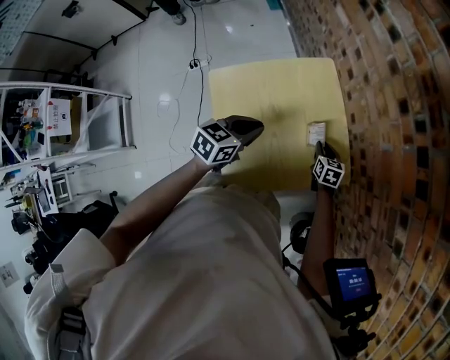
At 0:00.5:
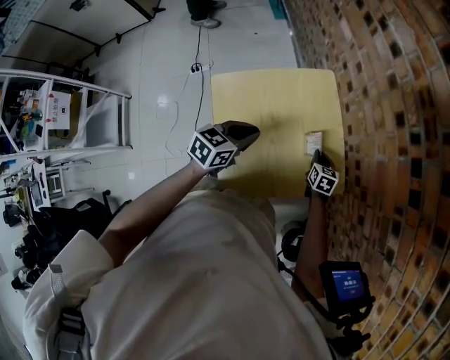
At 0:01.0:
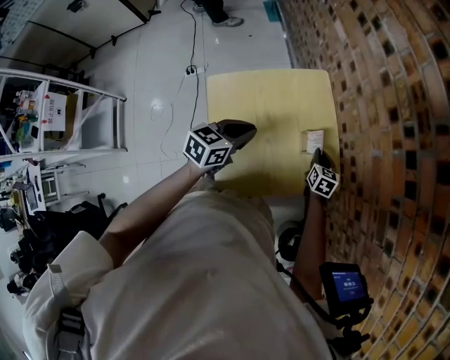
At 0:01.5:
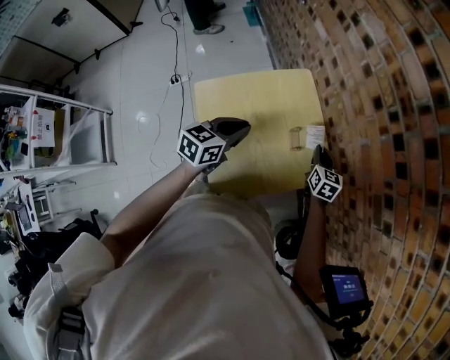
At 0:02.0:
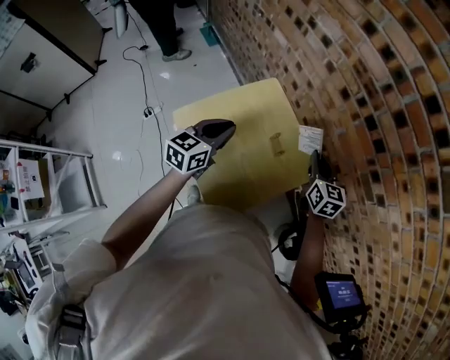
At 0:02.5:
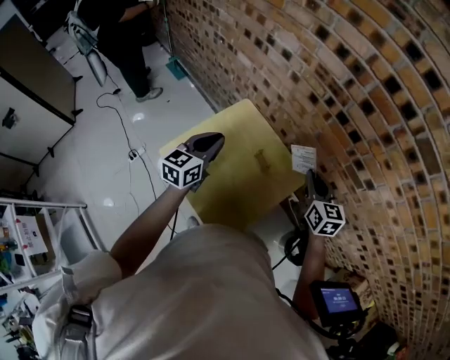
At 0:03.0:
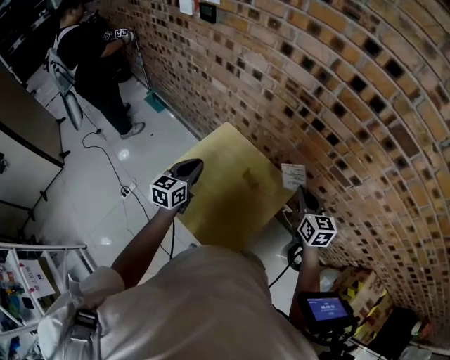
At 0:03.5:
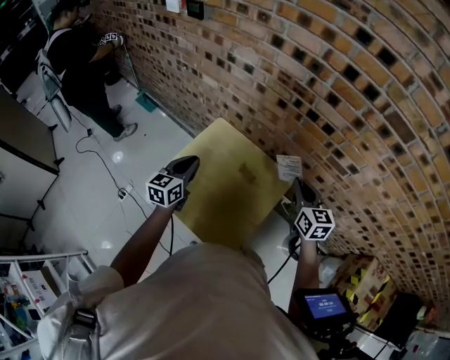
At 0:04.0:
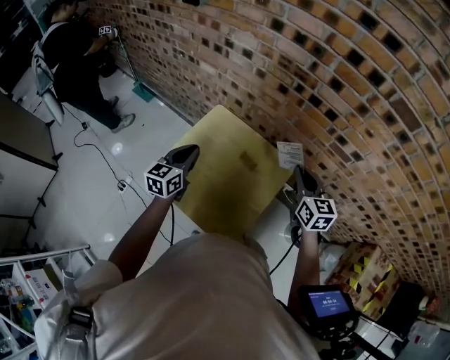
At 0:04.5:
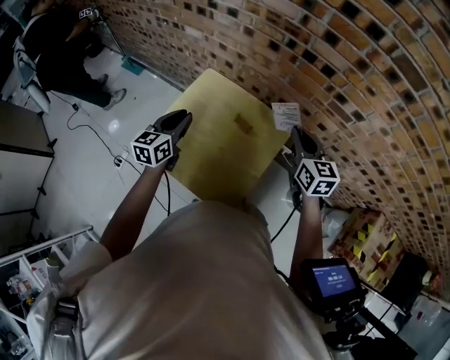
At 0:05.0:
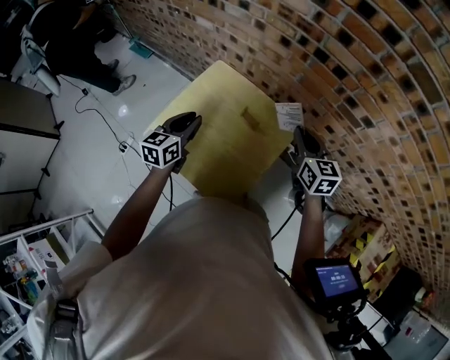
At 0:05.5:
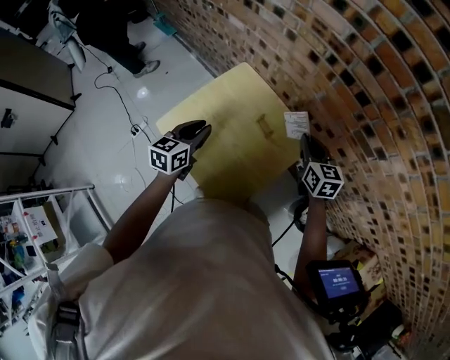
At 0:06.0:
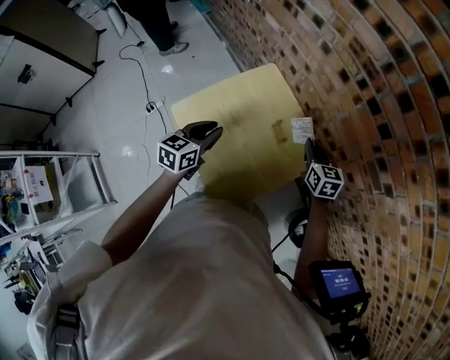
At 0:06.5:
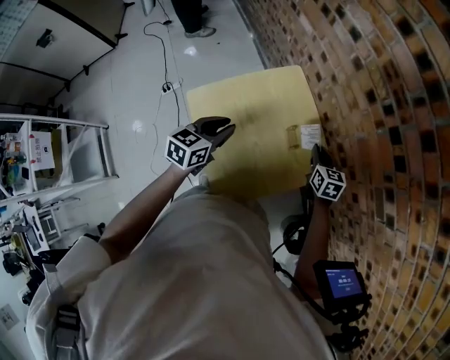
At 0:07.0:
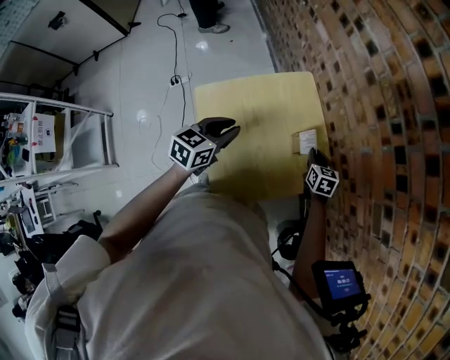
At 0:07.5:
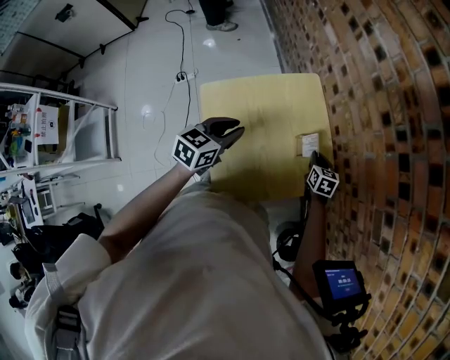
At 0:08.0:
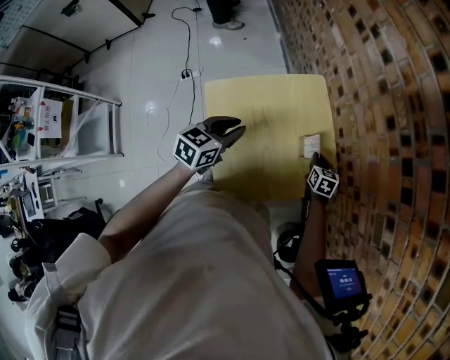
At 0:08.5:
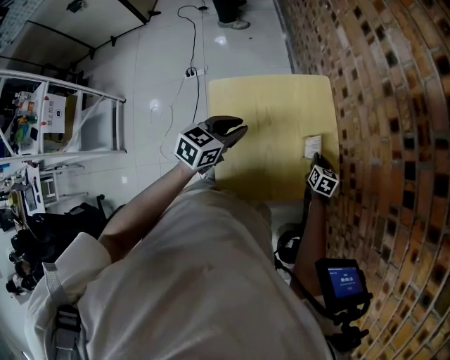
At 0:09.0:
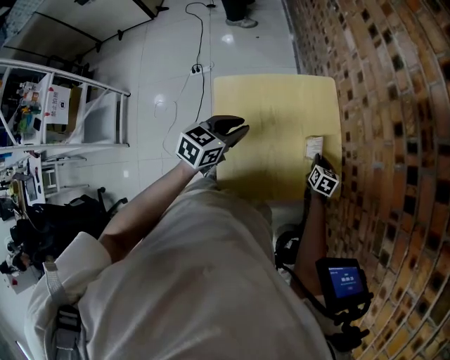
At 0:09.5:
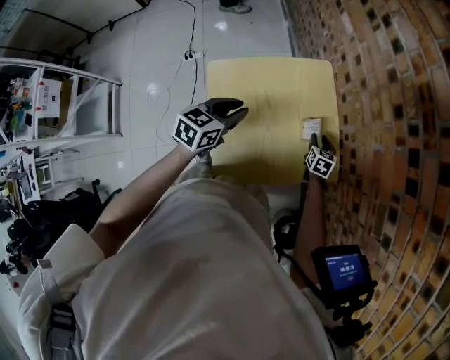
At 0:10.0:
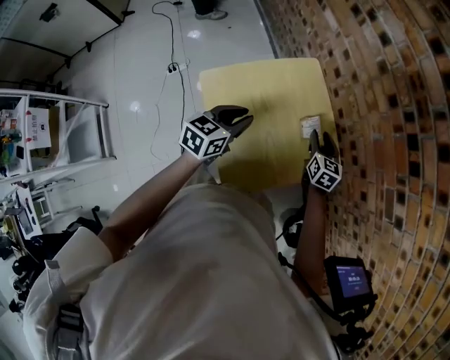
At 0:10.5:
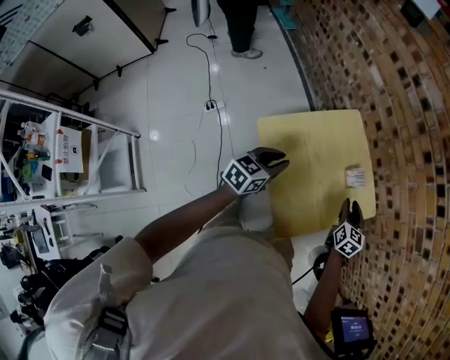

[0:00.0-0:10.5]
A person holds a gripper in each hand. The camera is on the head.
0:00.0 to 0:02.0: The right gripper travels upward by about 30 cm, and rotates roughly 30 degrees; the left gripper travels upward by approximately 10 cm.
0:02.0 to 0:04.0: The right gripper is displaced backward and upward by approximately 10 cm. The left gripper moves roughly 5 cm.
0:04.0 to 0:06.5: The right gripper shifts roughly 25 cm downward and forward, and changes its angle by roughly 30 degrees. The left gripper goes some 10 cm downward and backward, and changes its angle by approximately 20 degrees.
0:06.5 to 0:08.5: The right gripper is displaced downward by approximately 15 cm.
0:08.5 to 0:10.5: The right gripper moves upward, backward and to the left, approximately 20 cm, changes its angle by some 20 degrees, and opens its fingers, while the left gripper travels to the left by approximately 10 cm.

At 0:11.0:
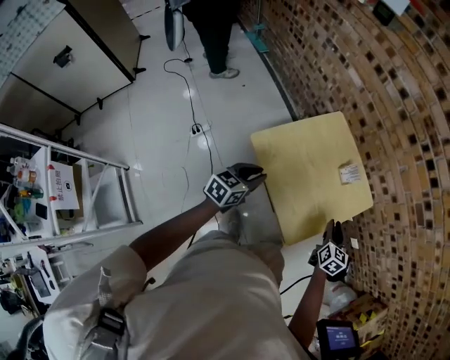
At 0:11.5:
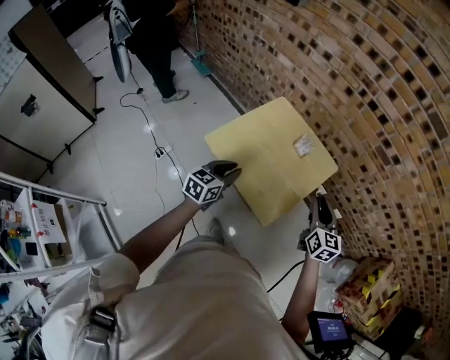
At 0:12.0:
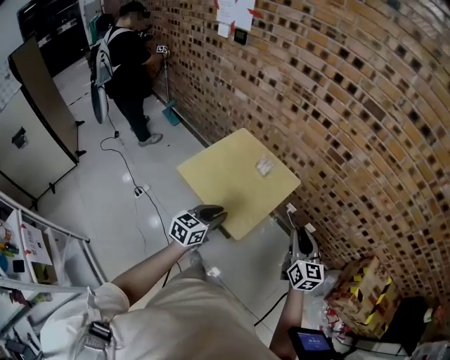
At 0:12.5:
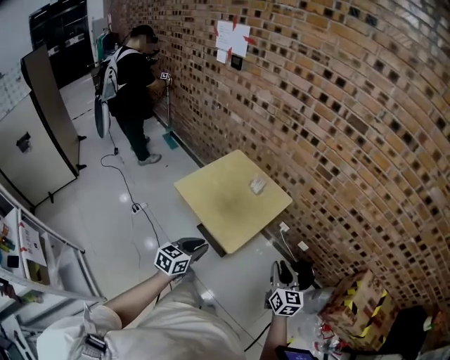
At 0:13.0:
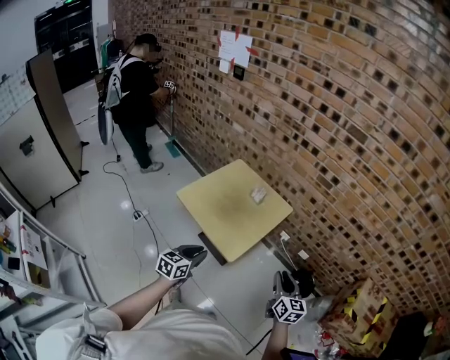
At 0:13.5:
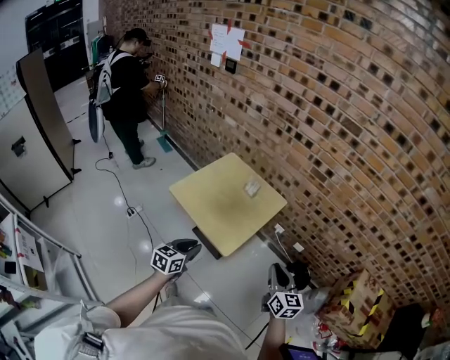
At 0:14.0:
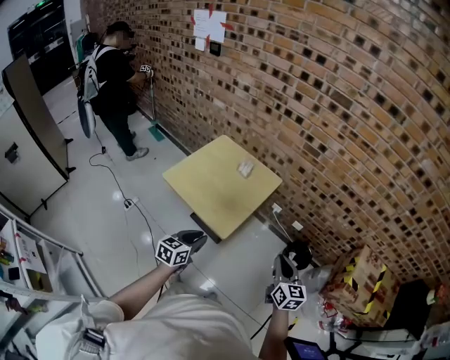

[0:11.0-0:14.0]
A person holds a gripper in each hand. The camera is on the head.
0:11.0 to 0:12.5: The right gripper travels backward, to the right and upward by about 35 cm, while the left gripper goes some 30 cm to the right and backward.
0:12.5 to 0:14.0: The right gripper moves roughly 5 cm, and closes up.

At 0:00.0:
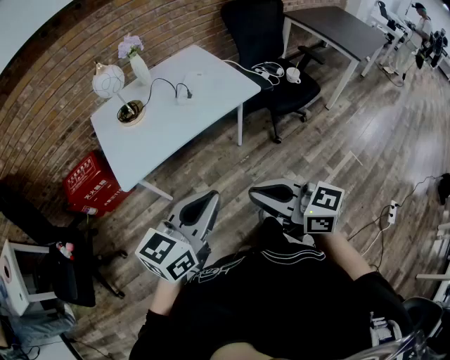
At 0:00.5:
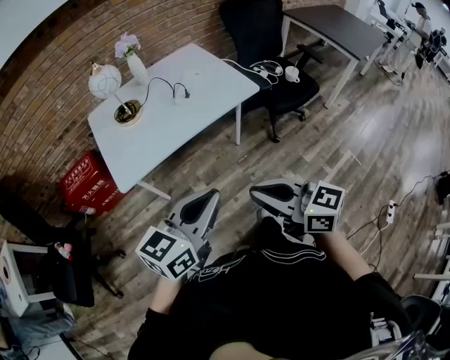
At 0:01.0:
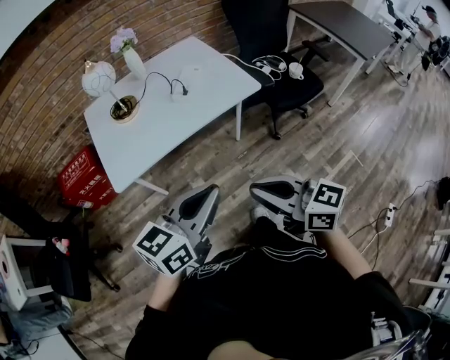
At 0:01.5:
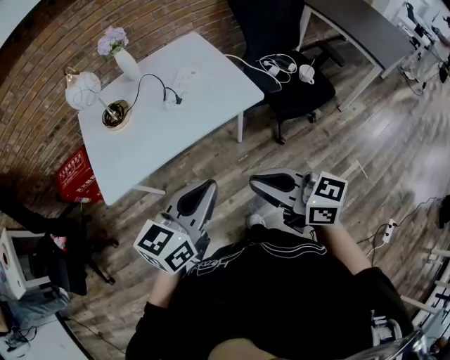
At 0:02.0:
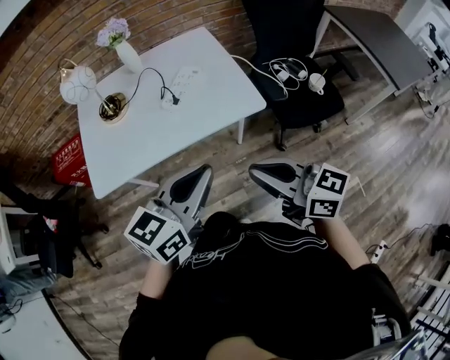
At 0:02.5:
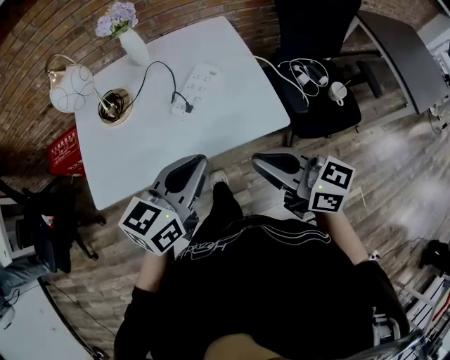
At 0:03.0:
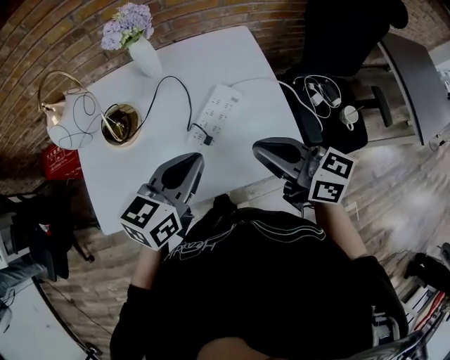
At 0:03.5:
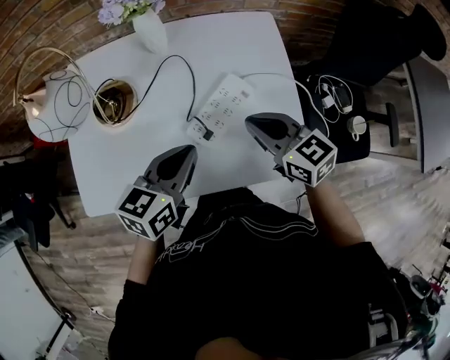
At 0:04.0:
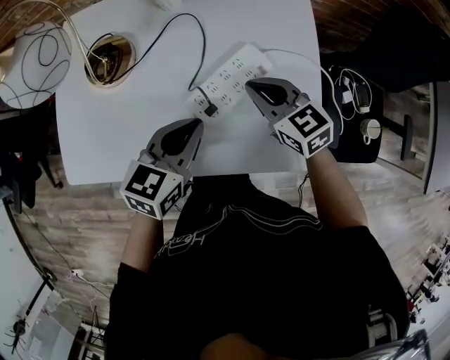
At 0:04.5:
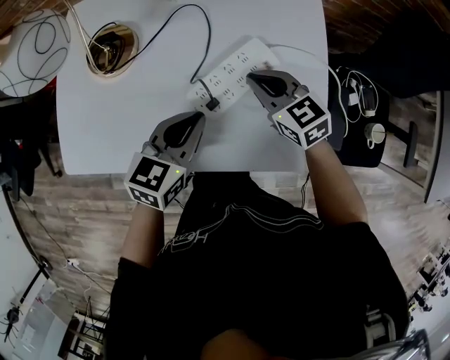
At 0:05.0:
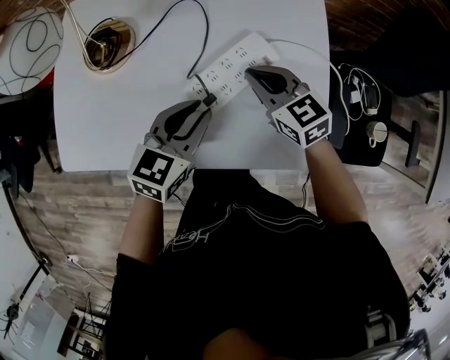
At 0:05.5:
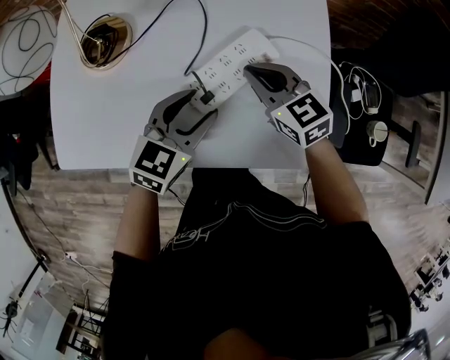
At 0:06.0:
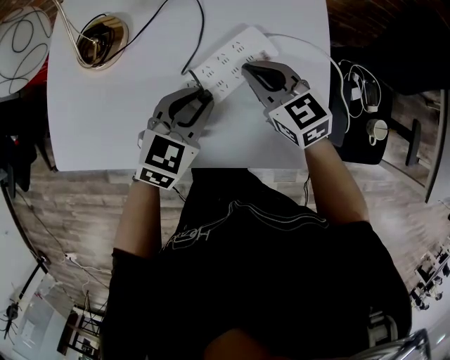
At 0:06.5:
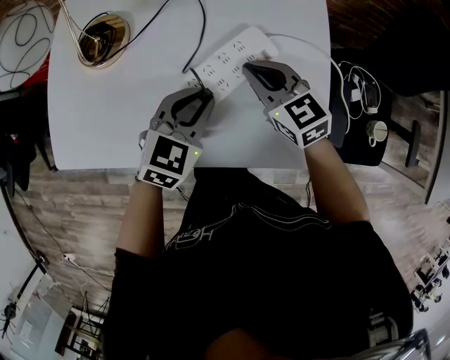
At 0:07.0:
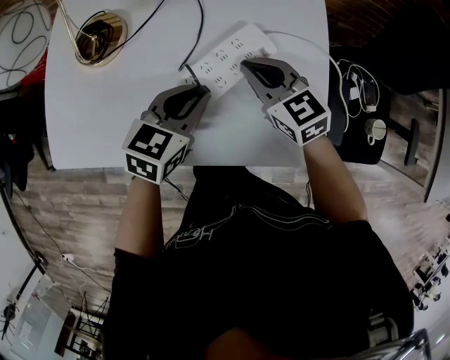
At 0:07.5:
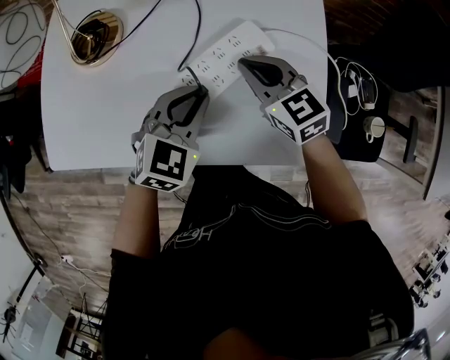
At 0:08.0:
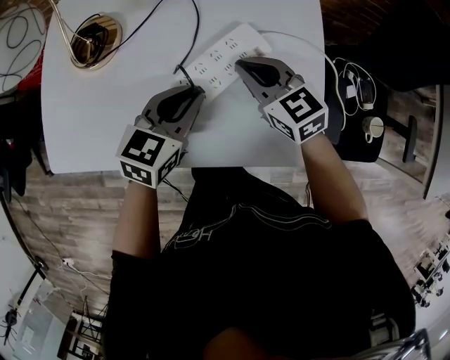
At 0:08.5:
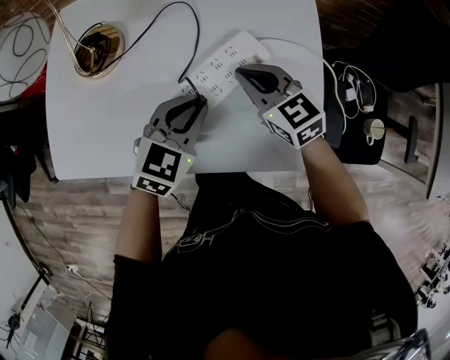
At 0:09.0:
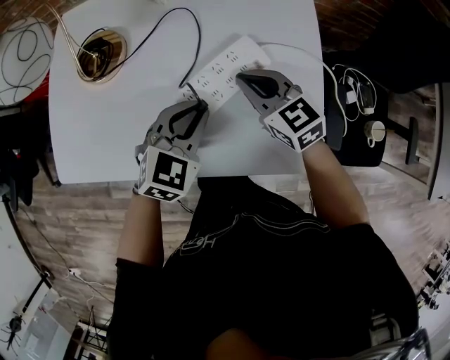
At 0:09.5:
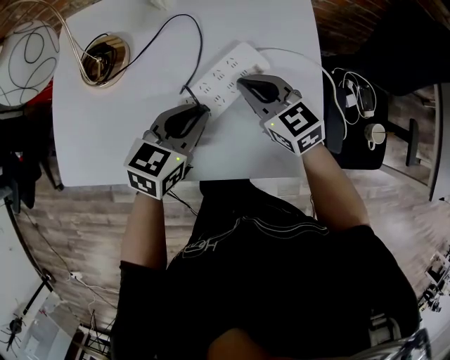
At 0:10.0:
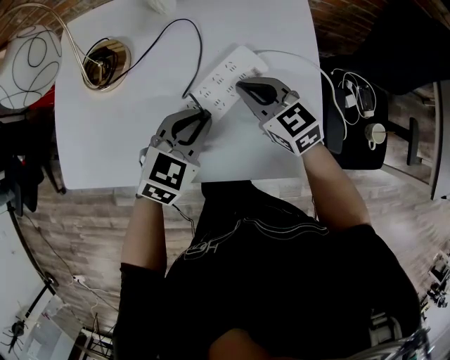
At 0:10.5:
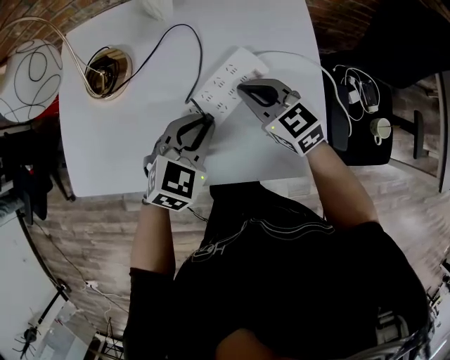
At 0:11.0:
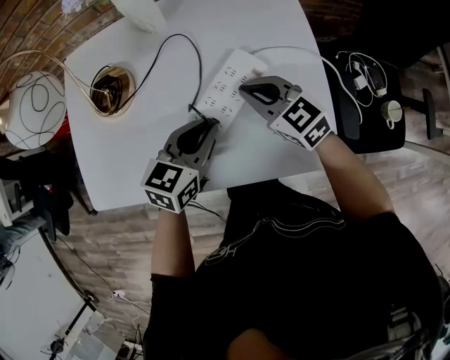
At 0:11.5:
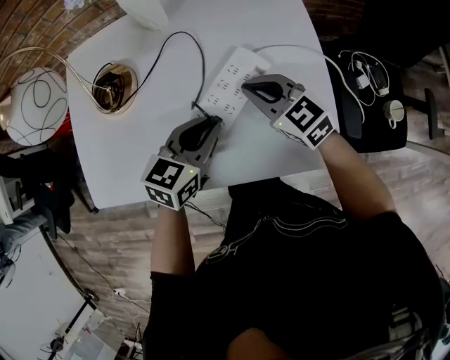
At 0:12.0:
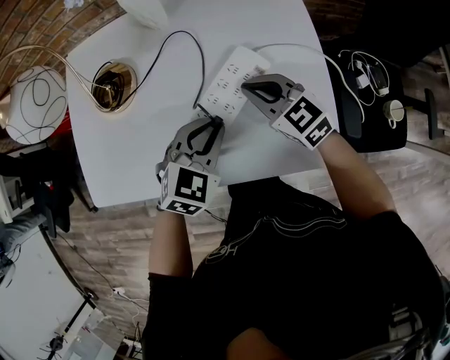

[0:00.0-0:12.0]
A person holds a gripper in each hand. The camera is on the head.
0:00.0 to 0:02.0: The two grippers go about 30 cm forward and to the right.
0:02.0 to 0:04.0: The two grippers go about 40 cm forward and downward. The left gripper swivels roughly 30 degrees; the right gripper changes its angle by roughly 40 degrees.
0:04.0 to 0:06.0: The left gripper is displaced downward by about 5 cm, rotates approximately 20 degrees, and opens and closes again.
0:06.0 to 0:08.0: There are only small adjustments of the grippers.

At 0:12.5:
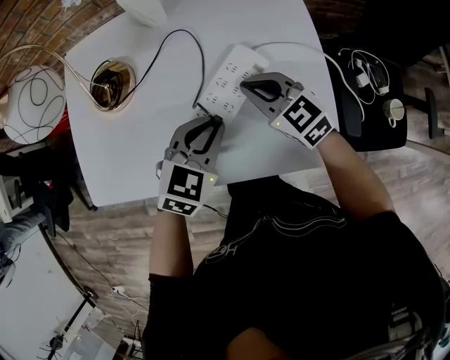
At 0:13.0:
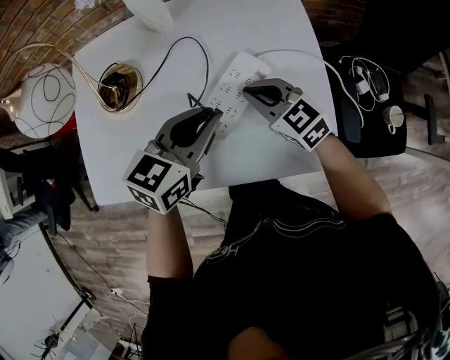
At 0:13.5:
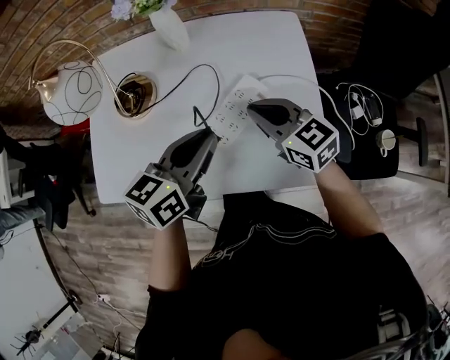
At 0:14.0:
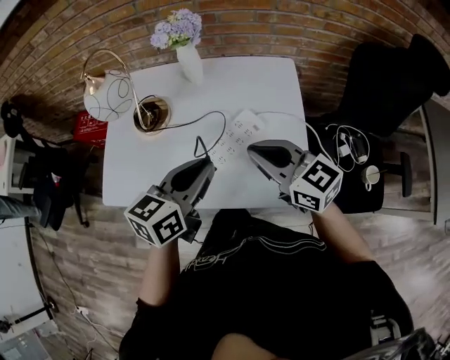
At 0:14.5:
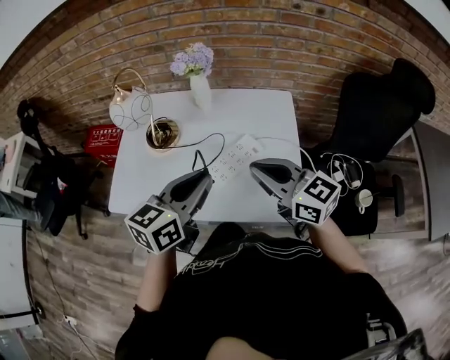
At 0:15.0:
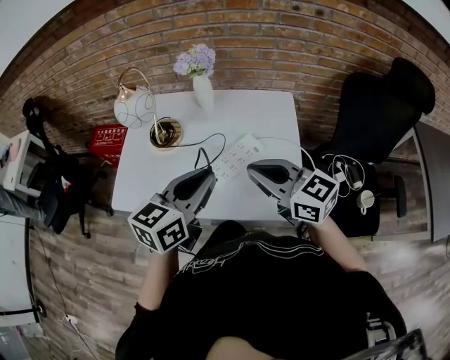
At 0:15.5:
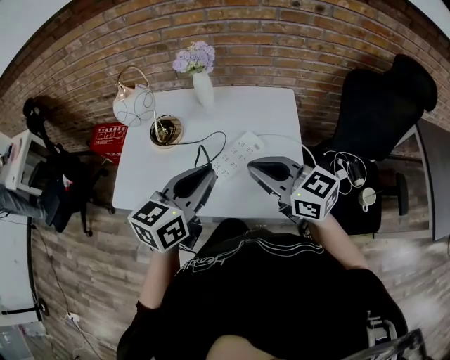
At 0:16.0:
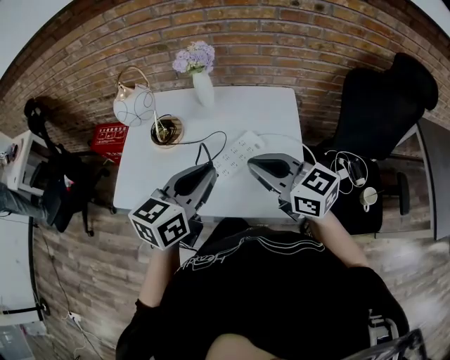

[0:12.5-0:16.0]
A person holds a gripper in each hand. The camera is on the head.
0:12.5 to 0:14.5: The left gripper heads upward, covering approximately 25 cm, and rotates approximately 40 degrees; the right gripper travels upward and backward by some 25 cm, and swivels some 30 degrees.
0:14.5 to 0:16.0: The grippers make only small movements.
